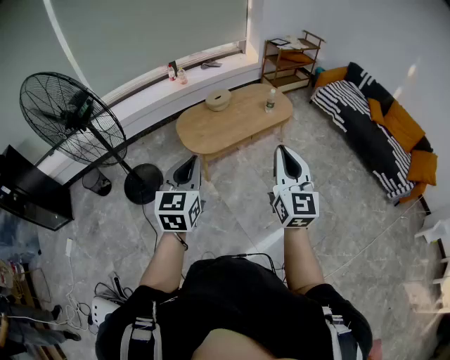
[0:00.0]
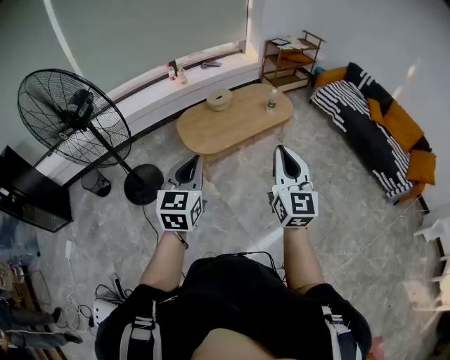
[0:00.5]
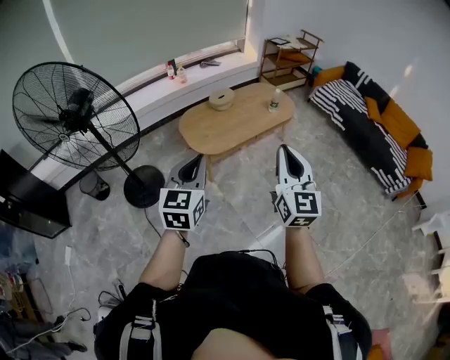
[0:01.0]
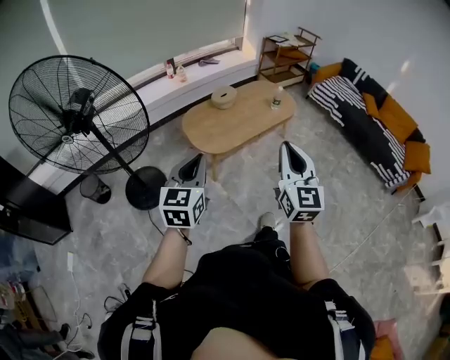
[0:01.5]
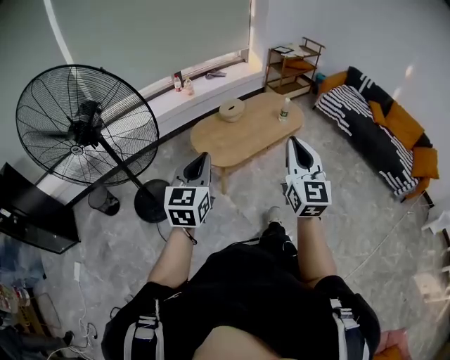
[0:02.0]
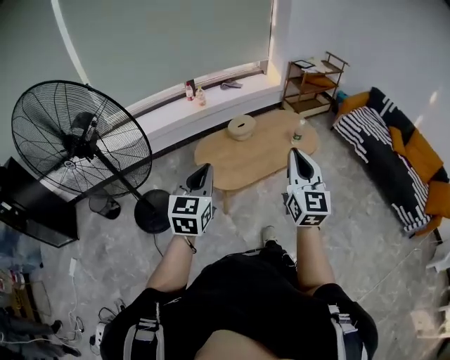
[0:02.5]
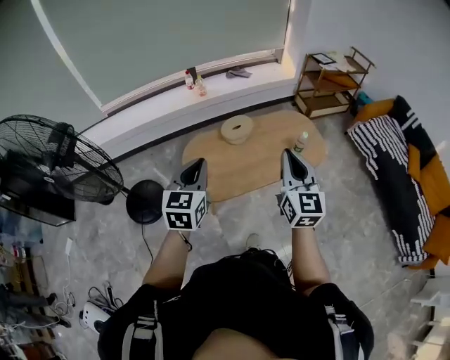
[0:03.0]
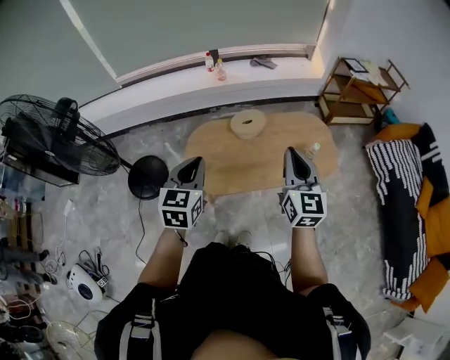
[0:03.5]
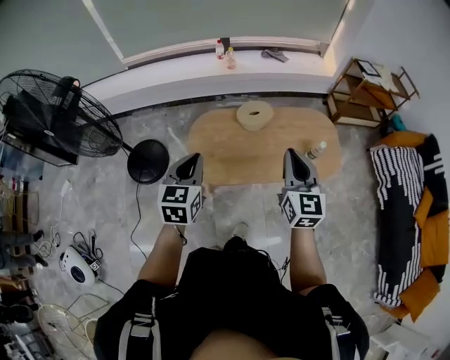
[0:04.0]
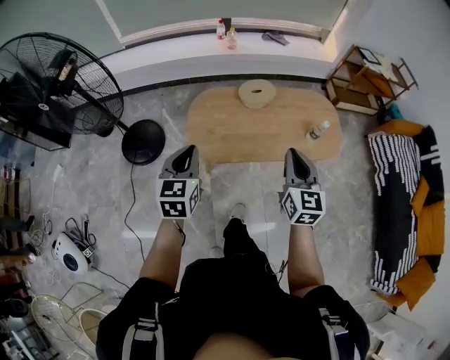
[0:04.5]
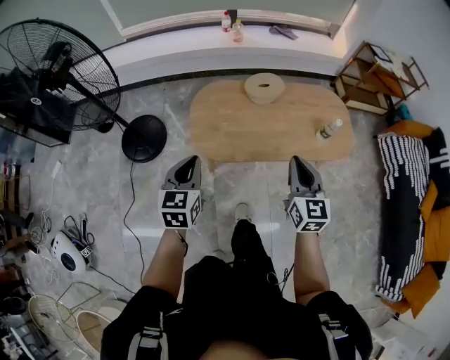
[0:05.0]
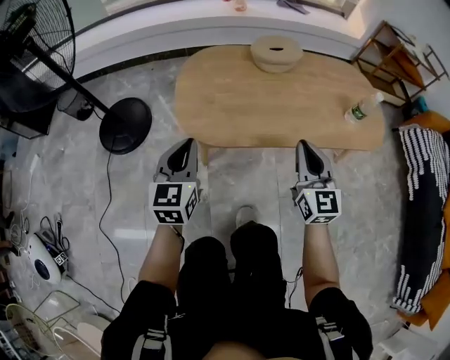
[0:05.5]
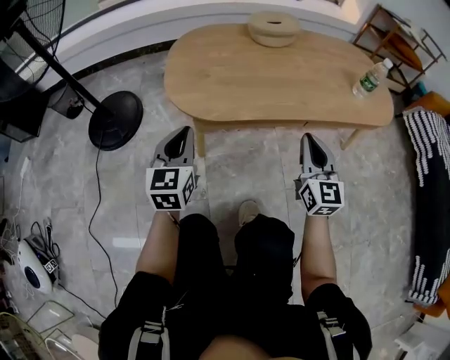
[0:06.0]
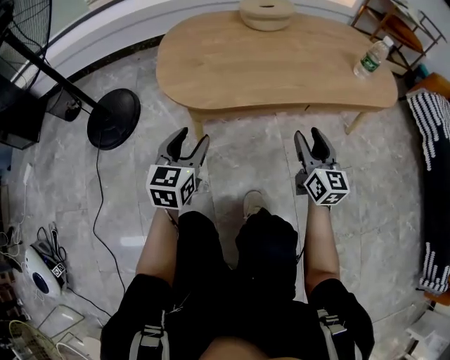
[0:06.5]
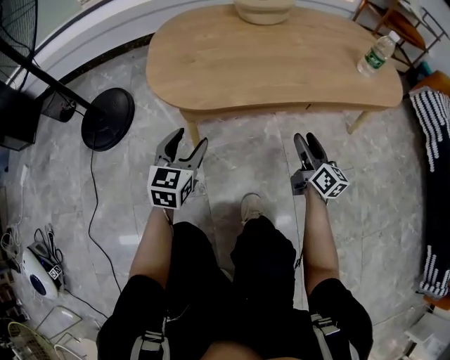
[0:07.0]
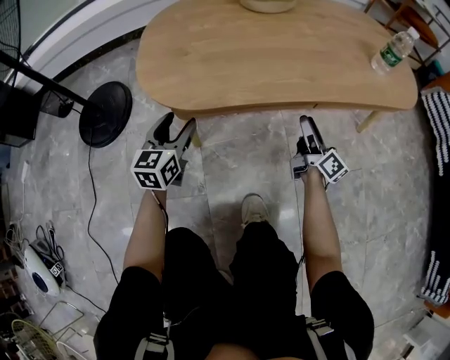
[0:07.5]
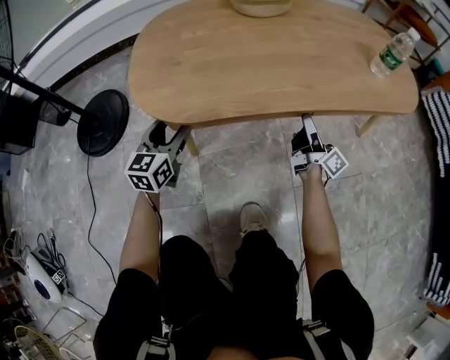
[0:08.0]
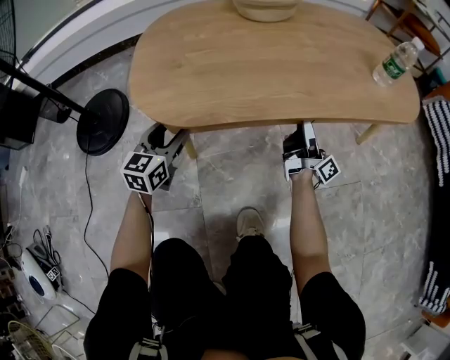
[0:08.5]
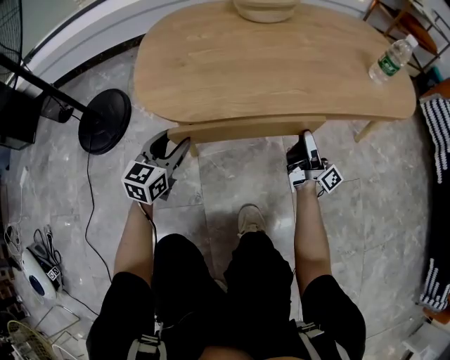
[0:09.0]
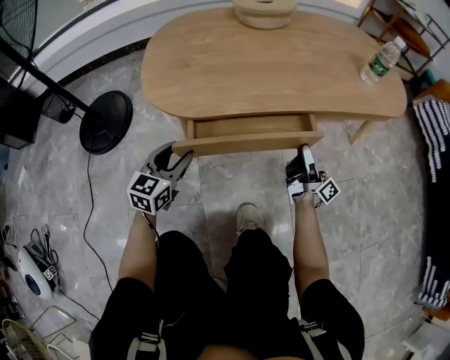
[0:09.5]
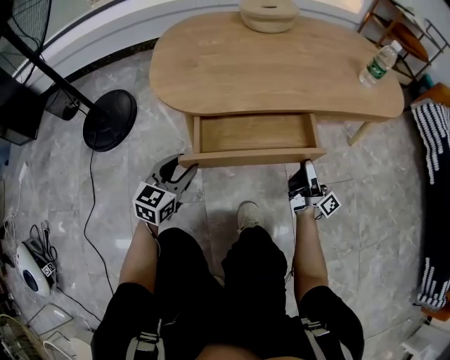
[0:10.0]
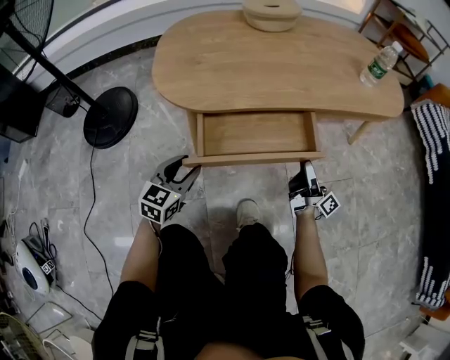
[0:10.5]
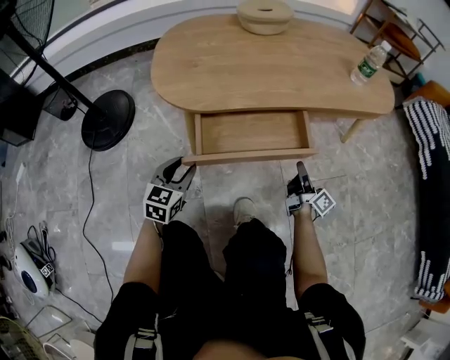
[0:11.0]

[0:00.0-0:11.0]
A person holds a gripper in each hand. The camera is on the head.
0:00.0 to 0:02.0: Both grippers move to the left, roughly 15 cm.
0:02.0 to 0:03.5: The pair of grippers is taken some 50 cm. The right gripper rotates some 30 degrees, while the left gripper swivels about 30 degrees.
0:03.5 to 0:05.5: The grippers both shift downward by some 50 cm.
0:05.5 to 0:07.5: The two grippers go some 30 cm downward. The right gripper twists approximately 50 degrees clockwise, seen from behind, and opens up, while the left gripper opens.
0:07.5 to 0:09.0: The right gripper swivels about 30 degrees.
0:09.0 to 0:11.0: The grippers both shift backward by approximately 15 cm. The right gripper swivels approximately 20 degrees, and closes.

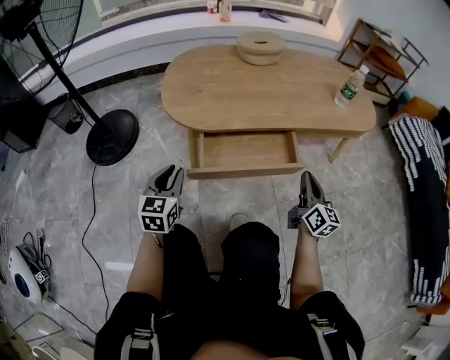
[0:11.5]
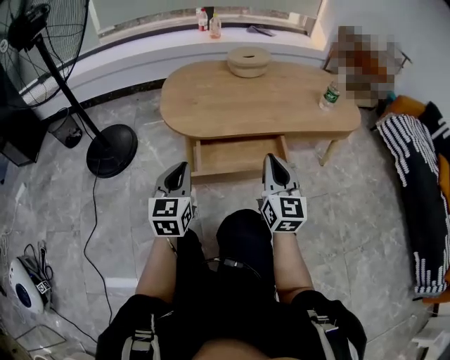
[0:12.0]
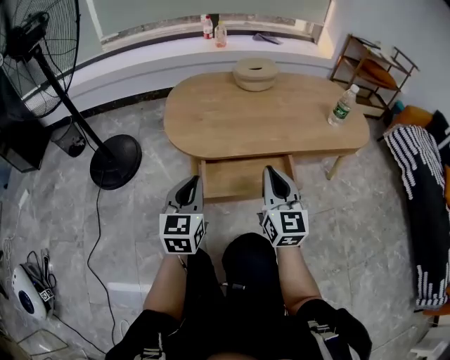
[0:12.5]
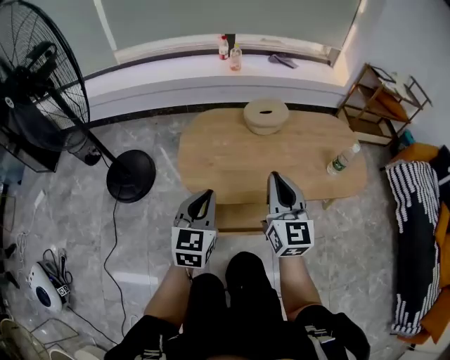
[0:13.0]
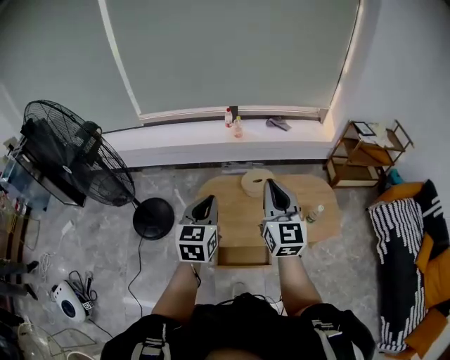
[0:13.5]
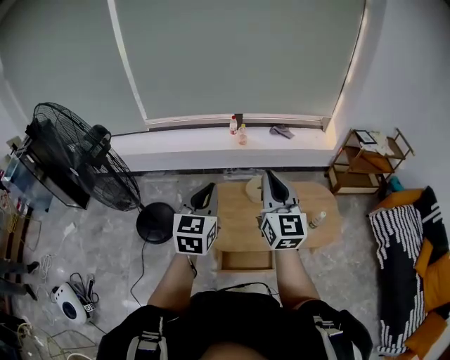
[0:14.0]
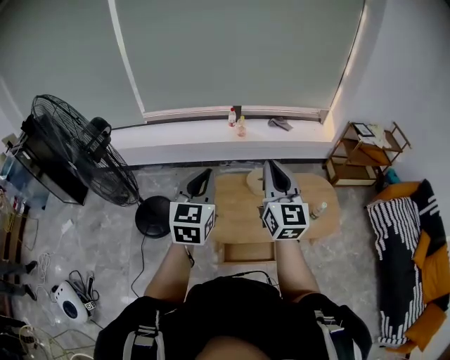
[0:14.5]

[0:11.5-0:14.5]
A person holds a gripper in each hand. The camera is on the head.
0:11.5 to 0:13.0: The right gripper moves upward, to the left and forward, approximately 40 cm, and rotates approximately 30 degrees, while the left gripper goes some 30 cm upward.
0:13.0 to 0:14.5: Both grippers move upward, some 50 cm.

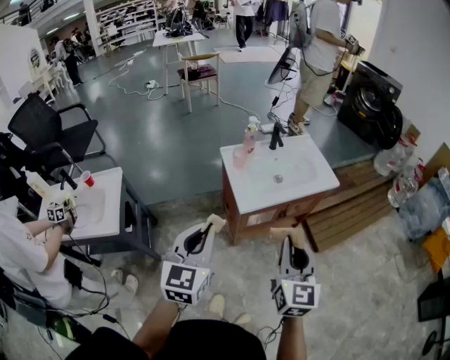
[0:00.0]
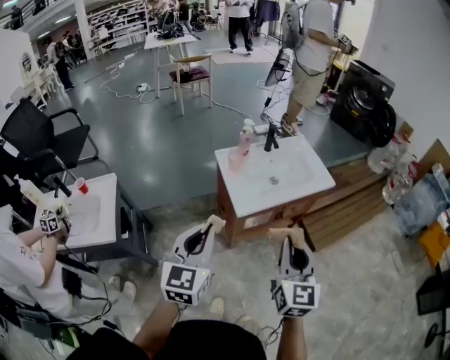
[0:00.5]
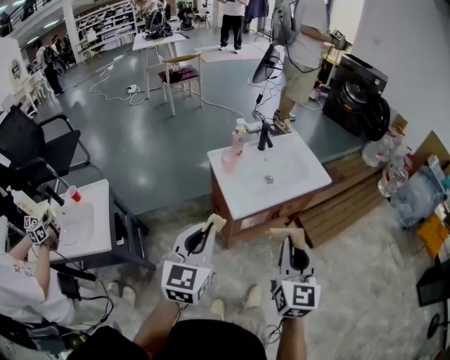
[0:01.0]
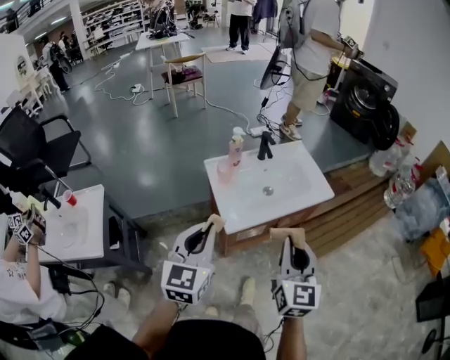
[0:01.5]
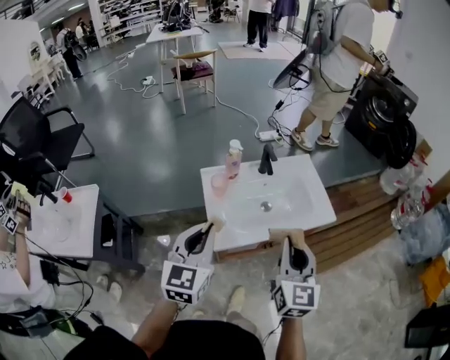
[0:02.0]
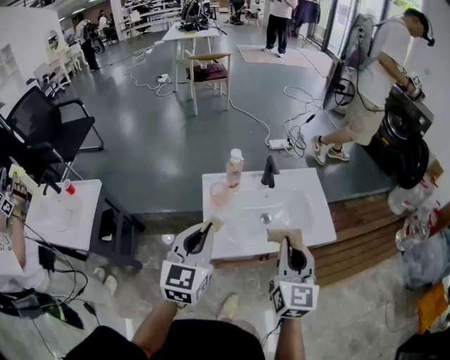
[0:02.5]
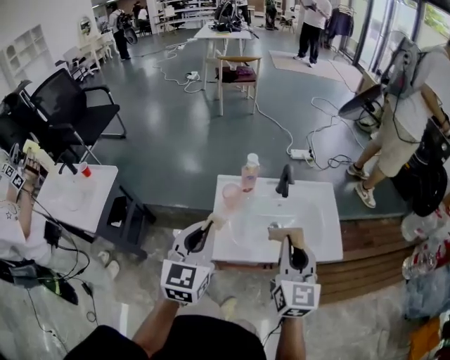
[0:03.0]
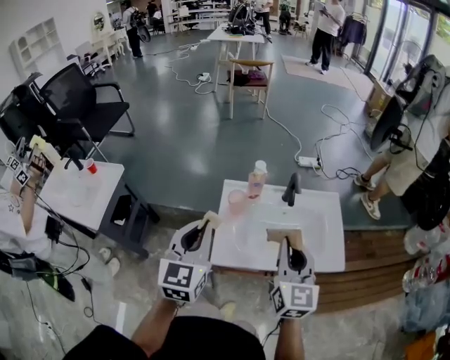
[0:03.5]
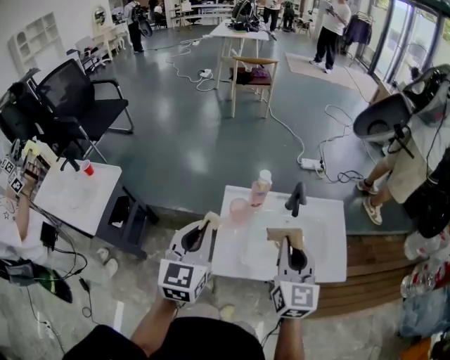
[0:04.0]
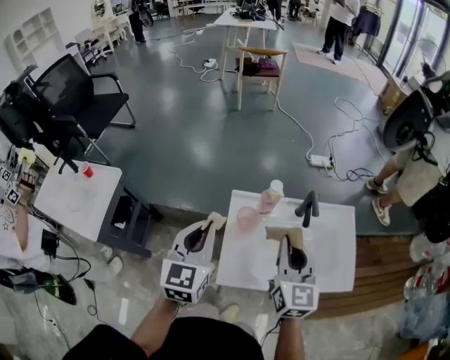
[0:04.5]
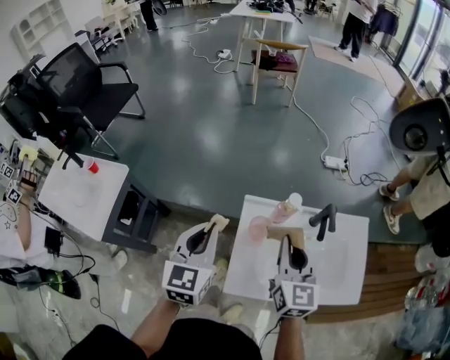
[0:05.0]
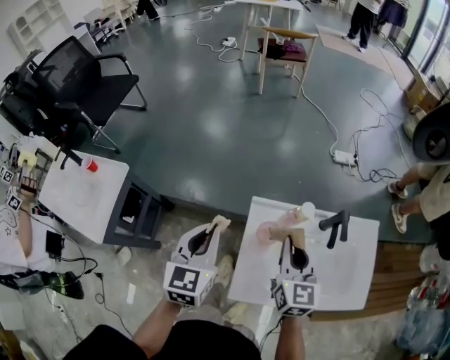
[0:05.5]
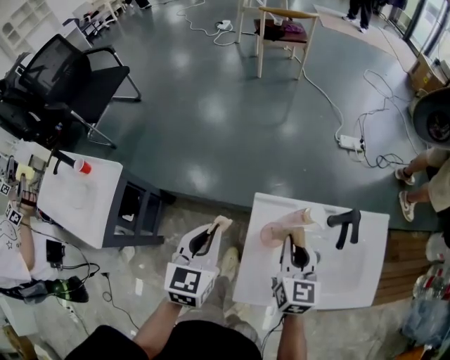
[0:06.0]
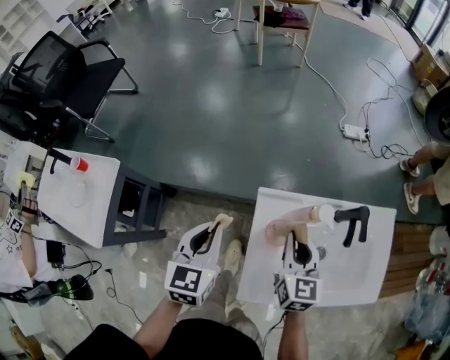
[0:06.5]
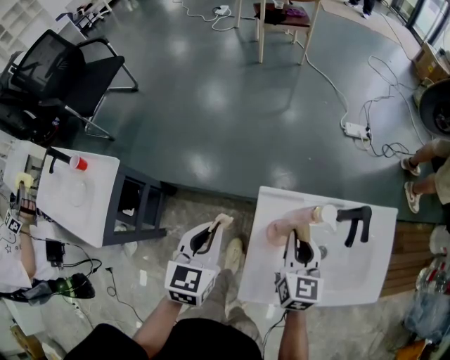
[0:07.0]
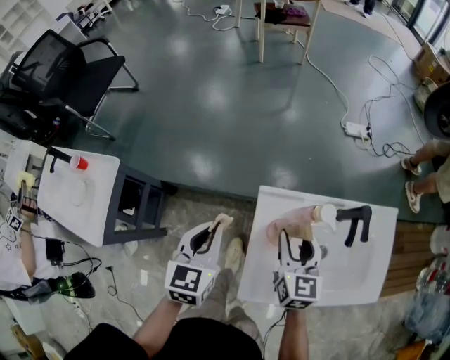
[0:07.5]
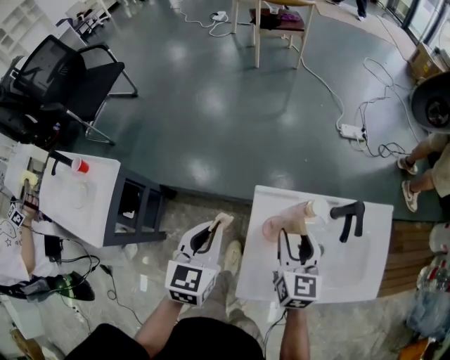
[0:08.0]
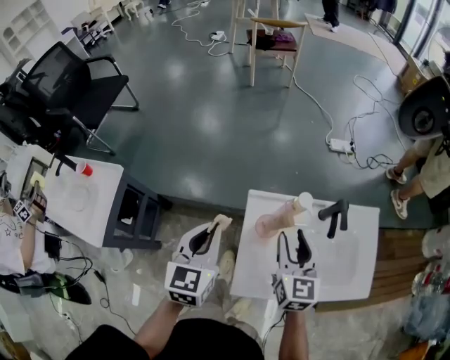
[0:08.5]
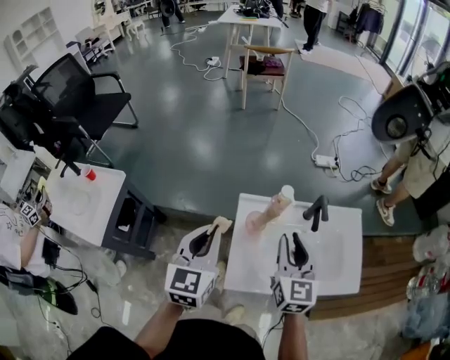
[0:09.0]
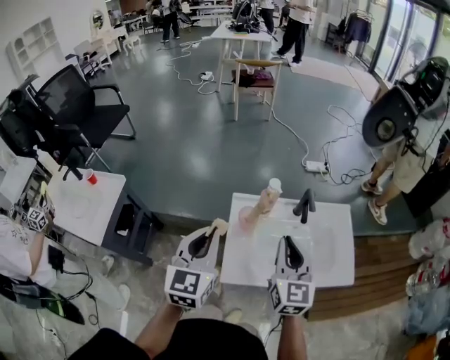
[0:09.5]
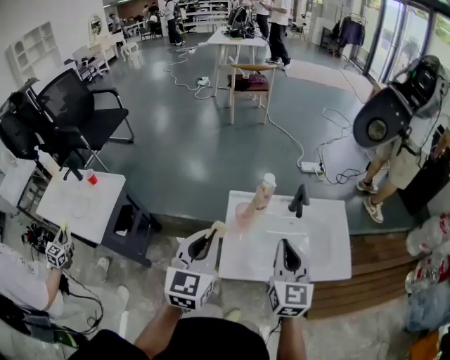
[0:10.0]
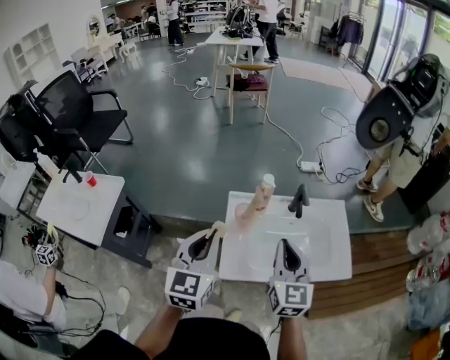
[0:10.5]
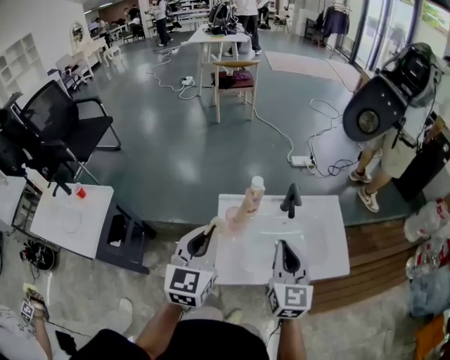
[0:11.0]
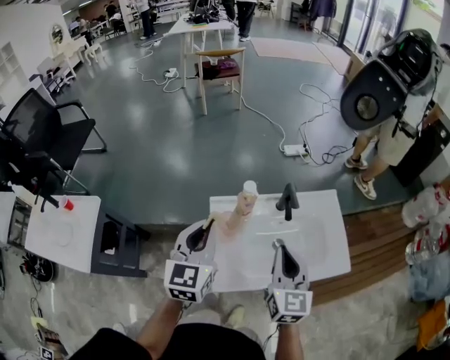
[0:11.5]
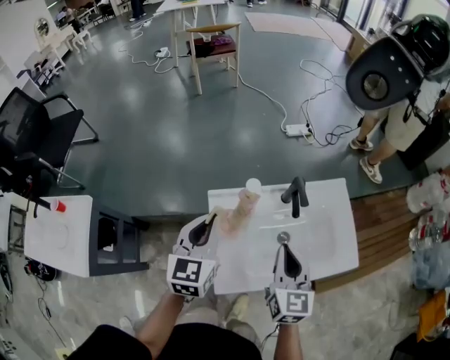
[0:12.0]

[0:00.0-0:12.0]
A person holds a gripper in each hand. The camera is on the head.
0:00.0 to 0:02.0: Both grippers travel together forward, some 25 cm.
0:02.0 to 0:04.0: The left gripper heads forward, covering approximately 10 cm, and turns by about 20 degrees; the right gripper is displaced forward by some 15 cm, and swivels roughly 20 degrees.
0:04.0 to 0:06.0: The grippers both shift forward, downward and to the left by approximately 25 cm.
0:06.0 to 0:08.0: The right gripper opens up.
0:08.0 to 0:10.0: The left gripper moves backward, upward and to the right, some 25 cm. The right gripper moves backward and upward, some 25 cm, and closes its fingers.
0:10.0 to 0:12.0: The right gripper heads downward and forward, covering approximately 10 cm. Meanwhile the left gripper moves forward and downward, roughly 20 cm.

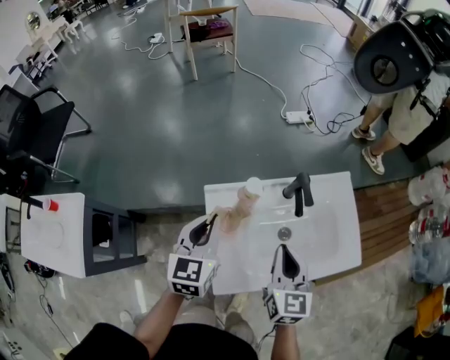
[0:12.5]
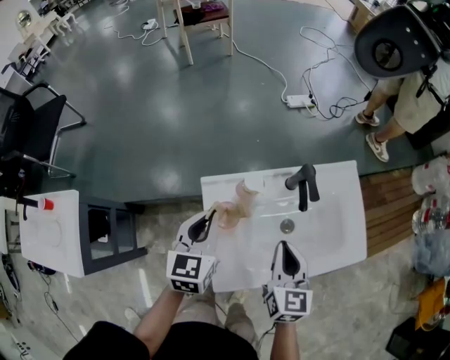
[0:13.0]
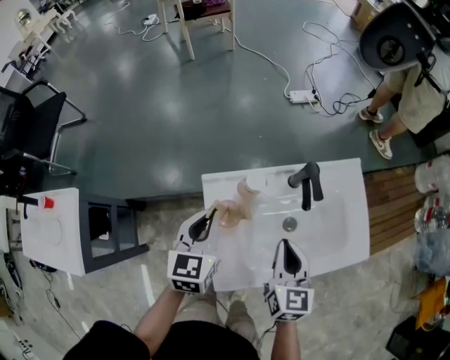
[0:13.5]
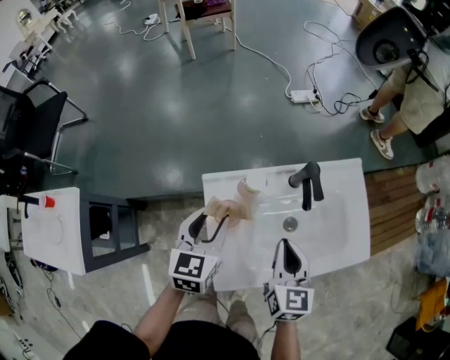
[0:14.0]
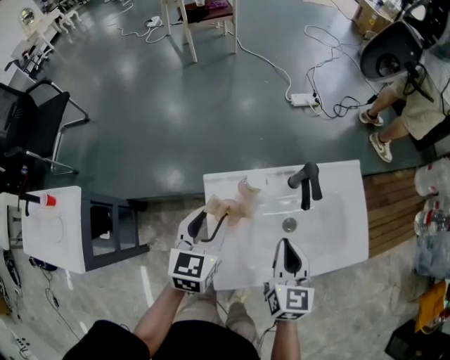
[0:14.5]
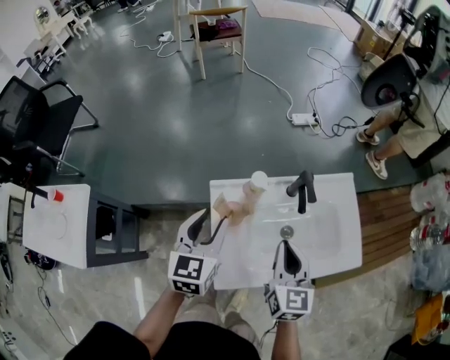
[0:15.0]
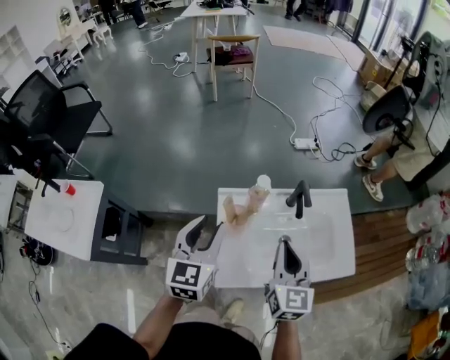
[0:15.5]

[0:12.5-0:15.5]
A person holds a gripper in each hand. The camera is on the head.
0:12.5 to 0:14.0: The left gripper goes roughly 5 cm downward, and opens.
0:14.0 to 0:15.5: The left gripper is displaced upward and backward by roughly 15 cm. Meanwhile the right gripper shifts roughly 10 cm upward.
